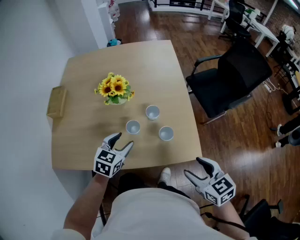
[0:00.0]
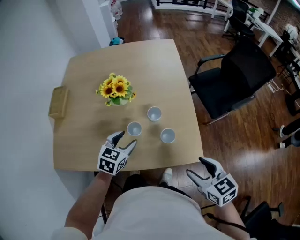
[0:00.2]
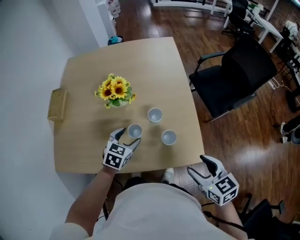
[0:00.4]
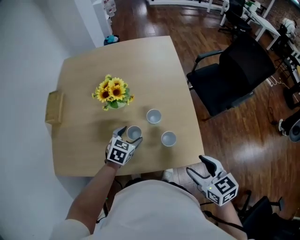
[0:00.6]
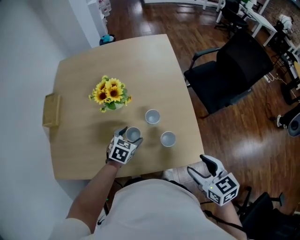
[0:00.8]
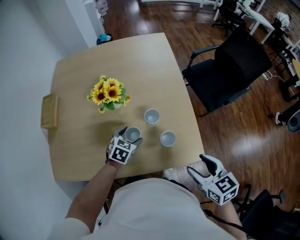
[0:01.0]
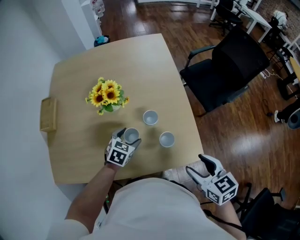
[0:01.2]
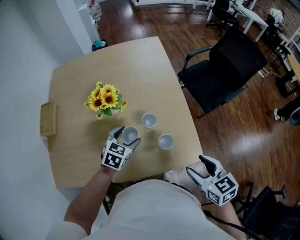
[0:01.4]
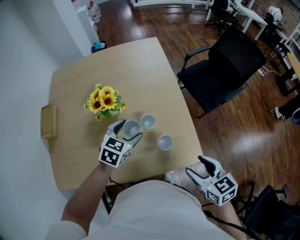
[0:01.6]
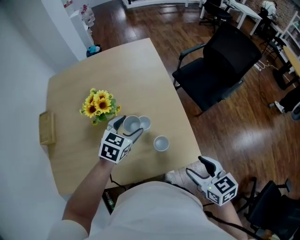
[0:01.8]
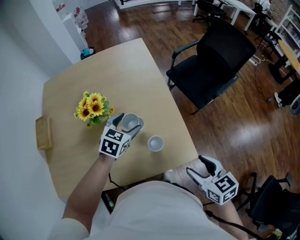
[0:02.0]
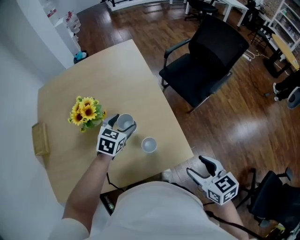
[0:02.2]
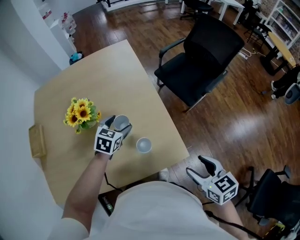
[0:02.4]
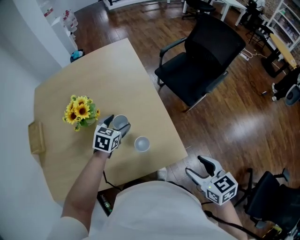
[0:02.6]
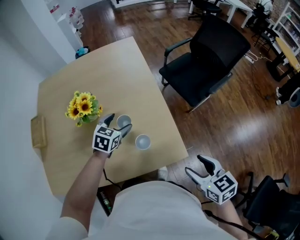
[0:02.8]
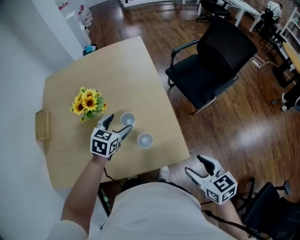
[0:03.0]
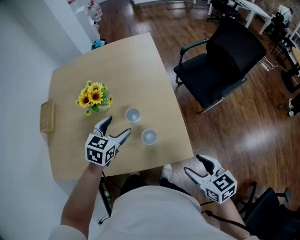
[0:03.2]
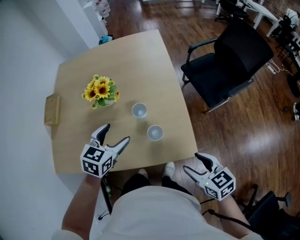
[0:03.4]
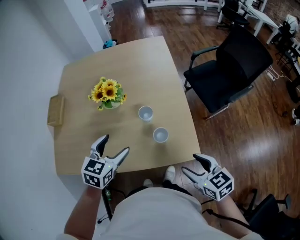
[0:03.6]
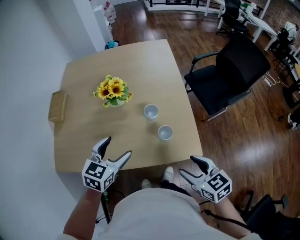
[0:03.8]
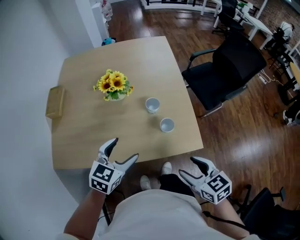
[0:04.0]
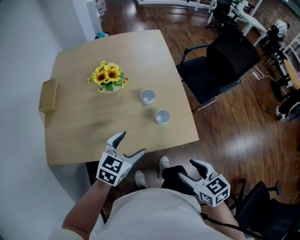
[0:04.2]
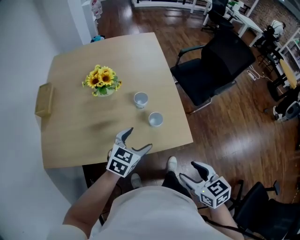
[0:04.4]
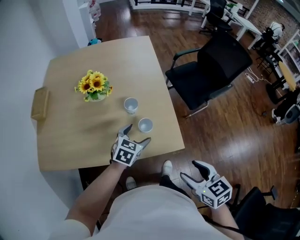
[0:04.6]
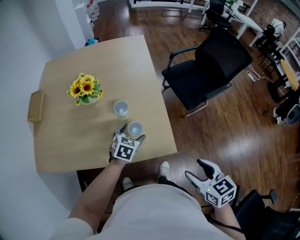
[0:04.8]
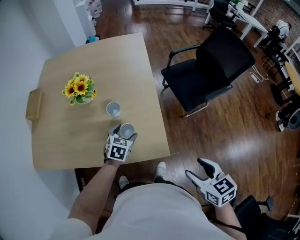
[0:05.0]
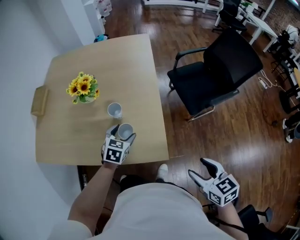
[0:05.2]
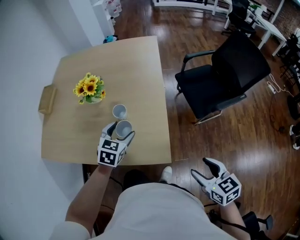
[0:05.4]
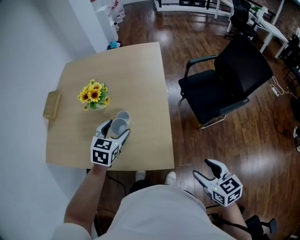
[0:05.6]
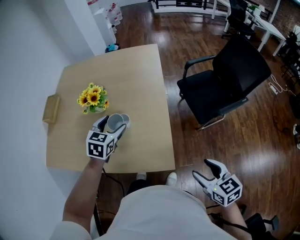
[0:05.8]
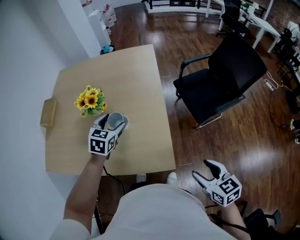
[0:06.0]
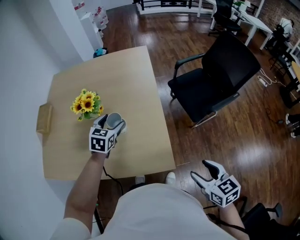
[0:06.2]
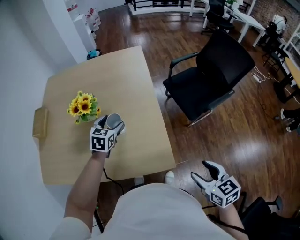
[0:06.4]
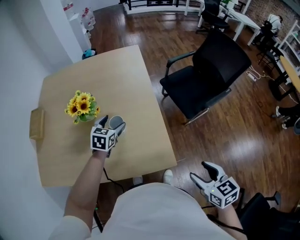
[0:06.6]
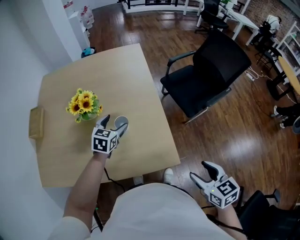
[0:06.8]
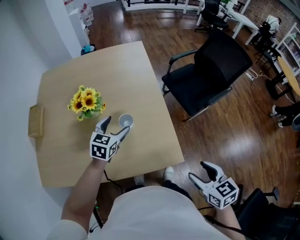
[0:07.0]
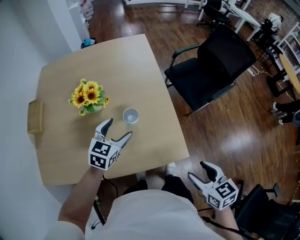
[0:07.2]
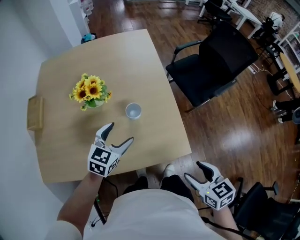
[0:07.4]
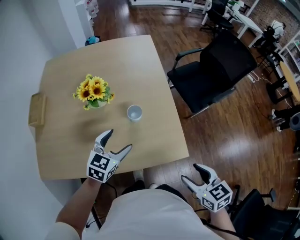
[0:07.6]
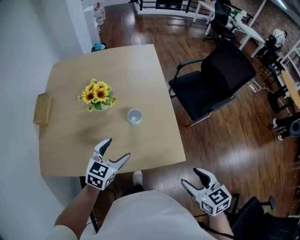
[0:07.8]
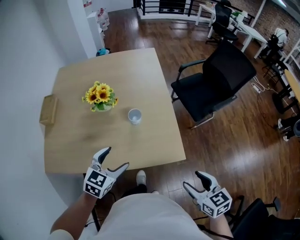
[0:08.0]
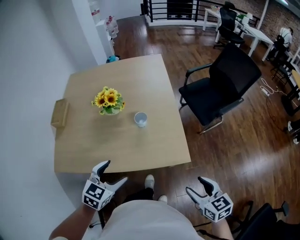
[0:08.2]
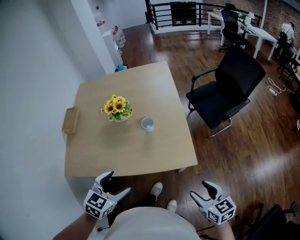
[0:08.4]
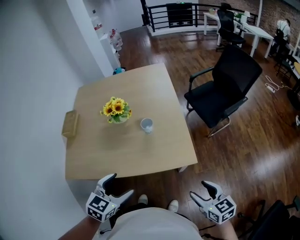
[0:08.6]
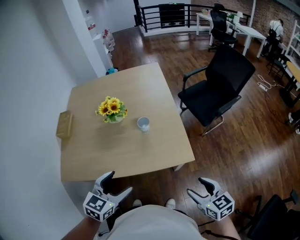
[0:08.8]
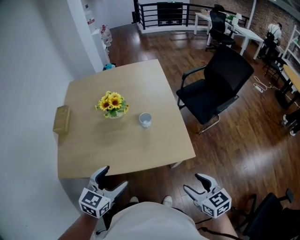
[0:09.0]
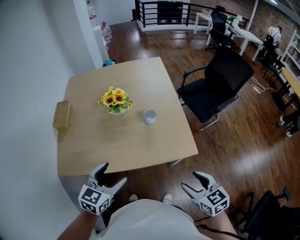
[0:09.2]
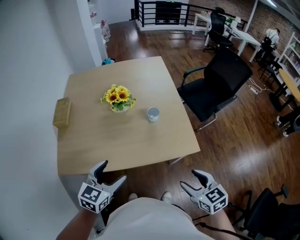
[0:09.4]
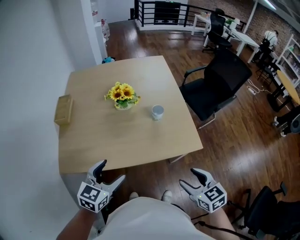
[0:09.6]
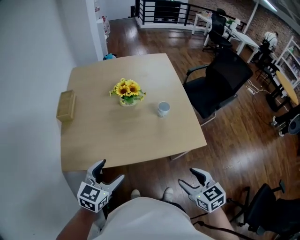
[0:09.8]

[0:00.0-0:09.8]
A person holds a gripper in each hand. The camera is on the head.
0:00.0 to 0:01.4: The left gripper goes approximately 10 cm forward, and goes downward and returns, approximately 10 cm each way. Meanwhile the right gripper moves forward, approximately 5 cm.
0:01.4 to 0:02.8: The left gripper shifts approximately 10 cm to the right and forward. Meanwhile the right gripper travels to the right by roughly 10 cm.
0:02.8 to 0:04.2: The right gripper goes about 15 cm to the left and backward. Meanwhile the left gripper is displaced backward by roughly 25 cm.
0:04.2 to 0:05.6: The right gripper travels to the right by some 25 cm; the left gripper heads forward and to the right, covering some 20 cm, and rotates some 30 degrees.
0:05.6 to 0:07.0: The right gripper moves to the left, some 10 cm; the left gripper goes approximately 5 cm forward.
0:07.0 to 0:08.4: The right gripper moves backward, roughly 10 cm; the left gripper is displaced backward by about 30 cm.
0:08.4 to 0:09.8: The two grippers go roughly 20 cm to the left.

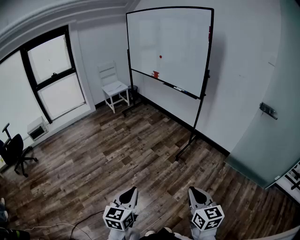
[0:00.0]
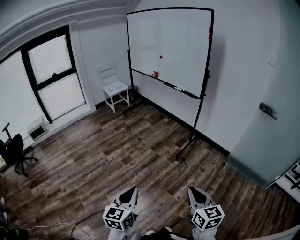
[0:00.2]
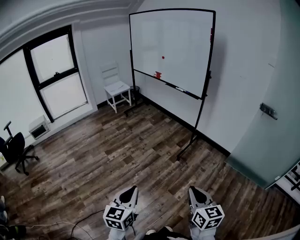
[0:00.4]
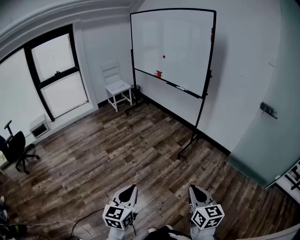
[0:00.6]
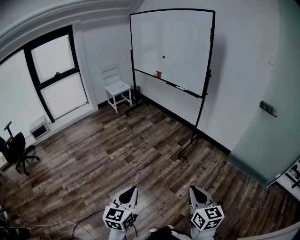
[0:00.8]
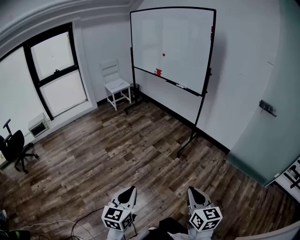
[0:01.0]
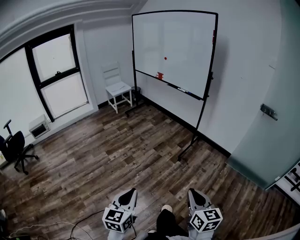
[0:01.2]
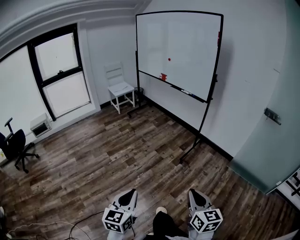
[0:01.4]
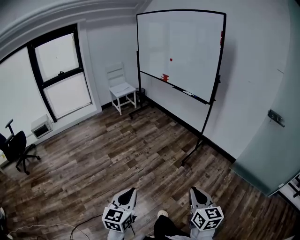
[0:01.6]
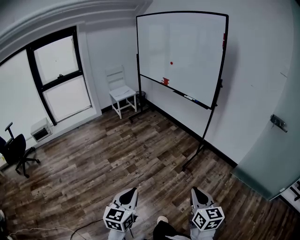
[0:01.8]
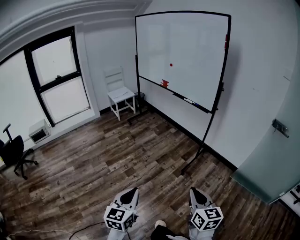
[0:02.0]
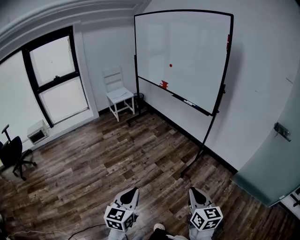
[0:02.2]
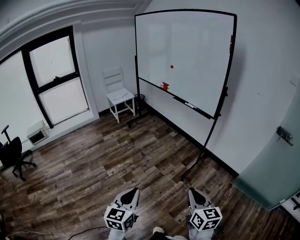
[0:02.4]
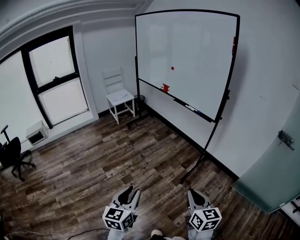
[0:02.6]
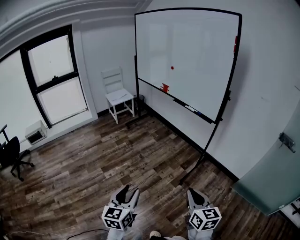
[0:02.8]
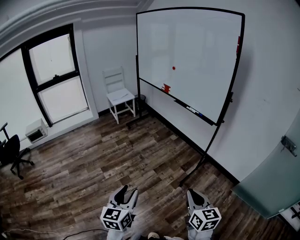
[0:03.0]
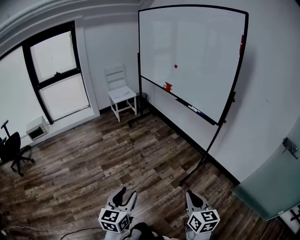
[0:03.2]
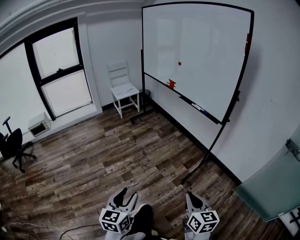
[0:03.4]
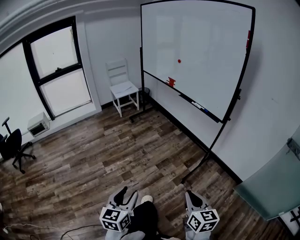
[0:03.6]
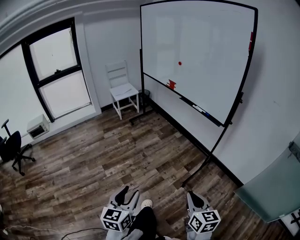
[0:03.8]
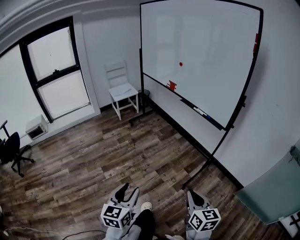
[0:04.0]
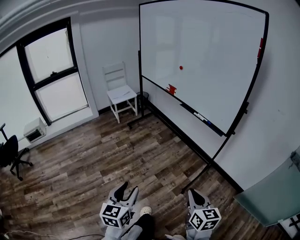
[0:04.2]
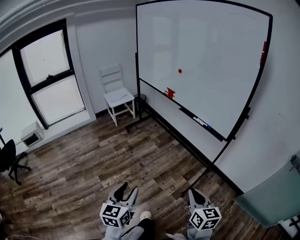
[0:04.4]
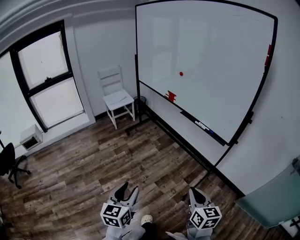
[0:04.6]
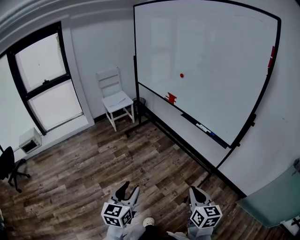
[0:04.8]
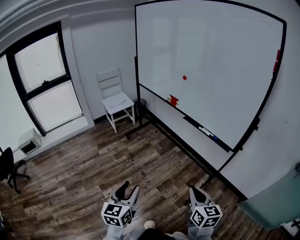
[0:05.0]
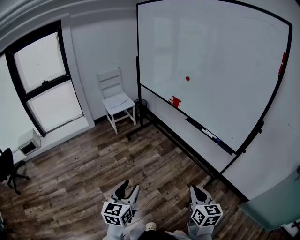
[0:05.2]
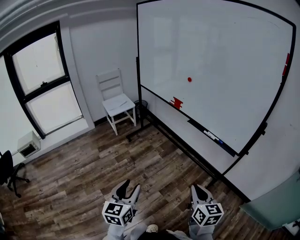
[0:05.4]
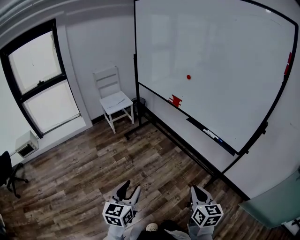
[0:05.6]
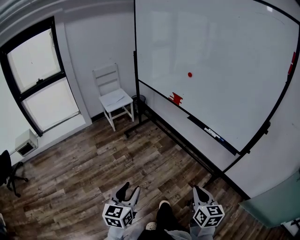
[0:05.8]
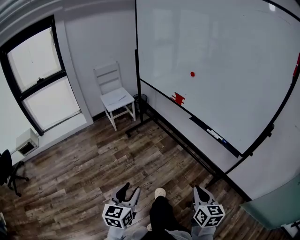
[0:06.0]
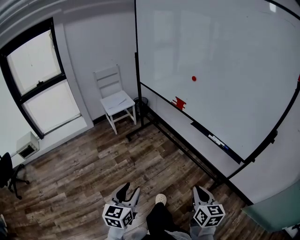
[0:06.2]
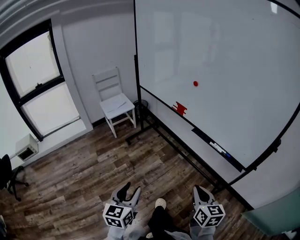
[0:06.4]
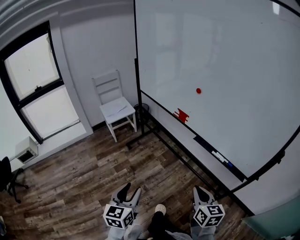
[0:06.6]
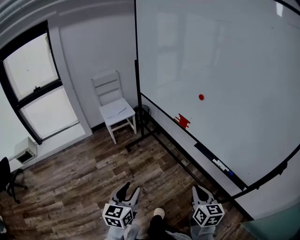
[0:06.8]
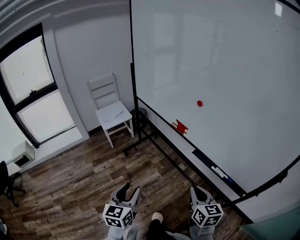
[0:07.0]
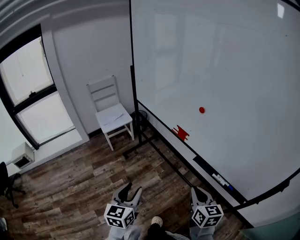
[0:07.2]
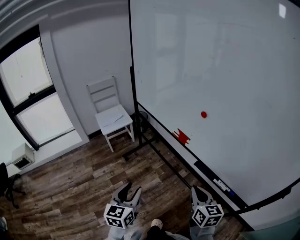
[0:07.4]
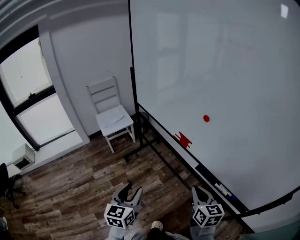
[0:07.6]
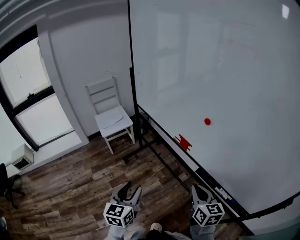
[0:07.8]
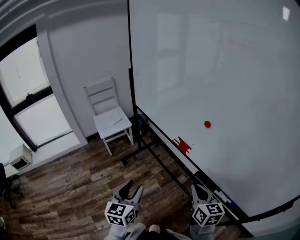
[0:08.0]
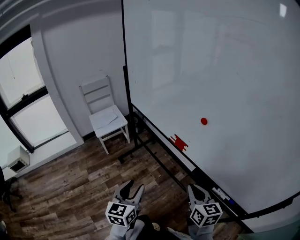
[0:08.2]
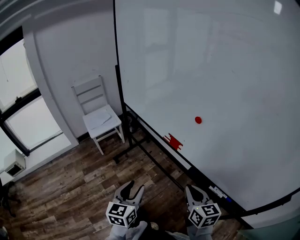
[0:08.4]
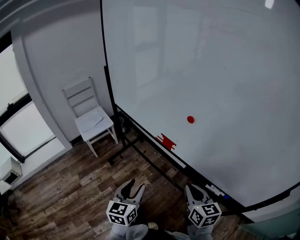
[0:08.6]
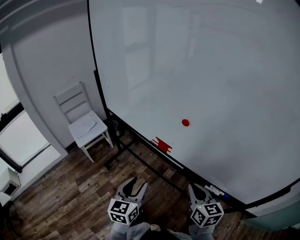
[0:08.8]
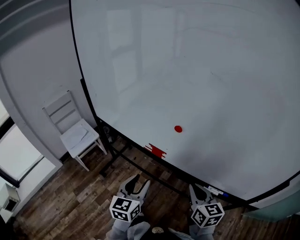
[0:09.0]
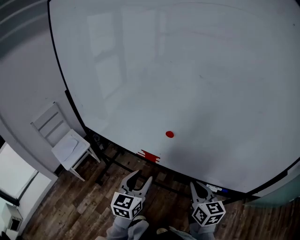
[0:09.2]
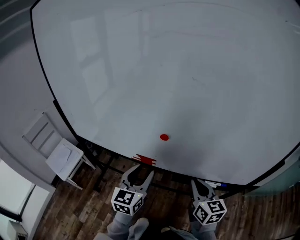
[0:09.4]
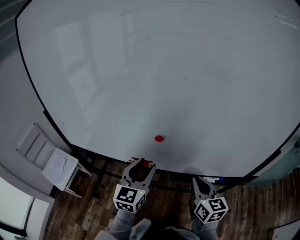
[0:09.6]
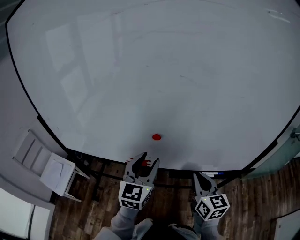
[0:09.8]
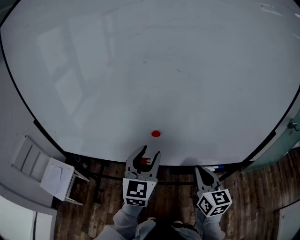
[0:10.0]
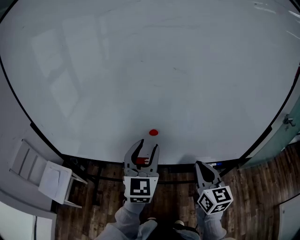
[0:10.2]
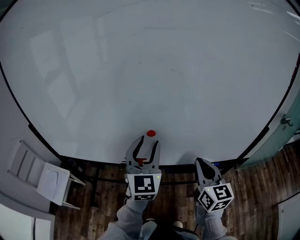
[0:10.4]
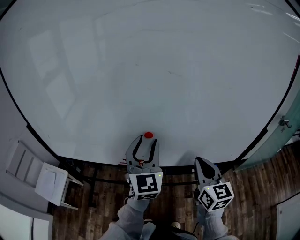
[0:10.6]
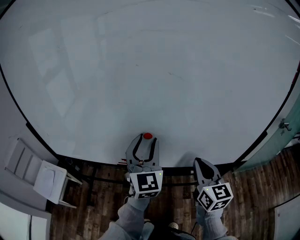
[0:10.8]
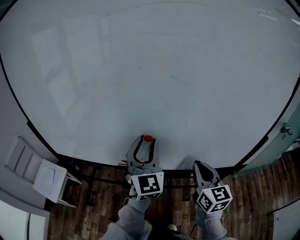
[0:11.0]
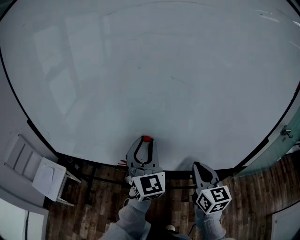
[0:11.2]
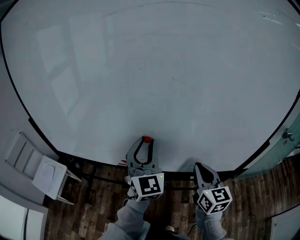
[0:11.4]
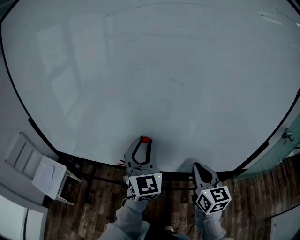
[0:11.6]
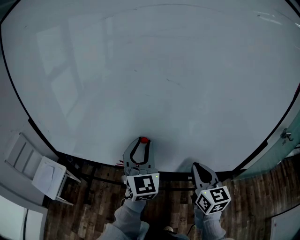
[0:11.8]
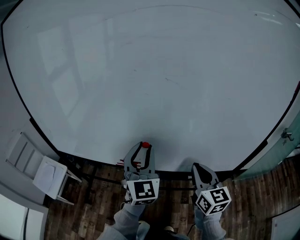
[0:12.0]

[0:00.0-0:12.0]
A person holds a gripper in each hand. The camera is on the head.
0:00.0 to 0:01.6: The right gripper shifts by roughly 5 cm. Meanwhile the left gripper is displaced to the left by some 5 cm.
0:01.6 to 0:03.0: Both grippers travel together forward, roughly 25 cm. The left gripper opens its fingers.
0:03.0 to 0:04.4: Both grippers travel together forward, approximately 20 cm.
0:04.4 to 0:06.0: Both grippers travel together forward, roughly 20 cm.
0:06.0 to 0:07.6: The two grippers go roughly 35 cm forward.
0:07.6 to 0:09.0: The right gripper shifts roughly 10 cm forward and to the right; the left gripper heads forward and to the right, covering approximately 20 cm, and rotates about 20 degrees.
0:09.0 to 0:10.4: The right gripper is displaced upward by about 10 cm, and rotates approximately 40 degrees, while the left gripper moves upward, some 15 cm, and rotates roughly 30 degrees.
0:10.4 to 0:12.0: There are only small adjustments of the grippers.

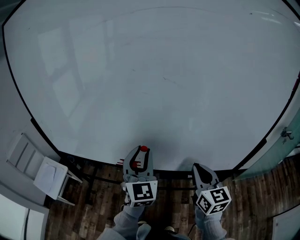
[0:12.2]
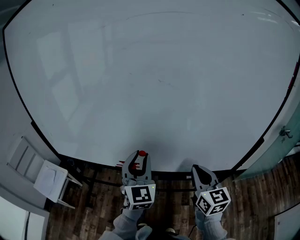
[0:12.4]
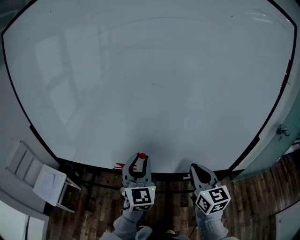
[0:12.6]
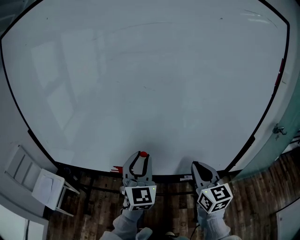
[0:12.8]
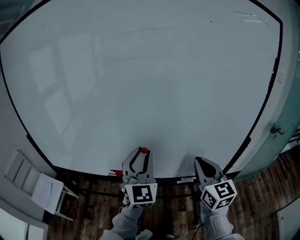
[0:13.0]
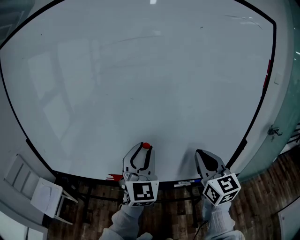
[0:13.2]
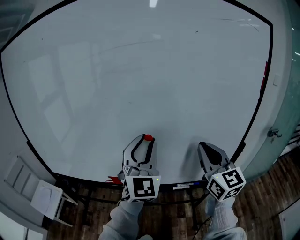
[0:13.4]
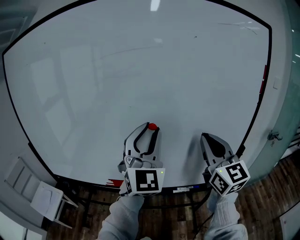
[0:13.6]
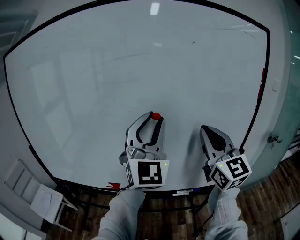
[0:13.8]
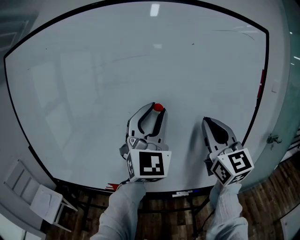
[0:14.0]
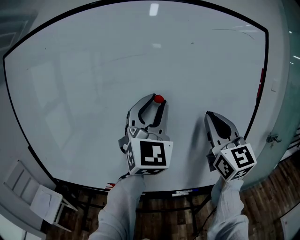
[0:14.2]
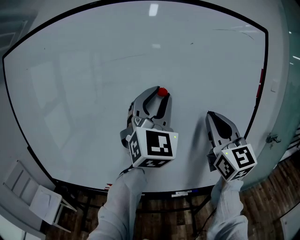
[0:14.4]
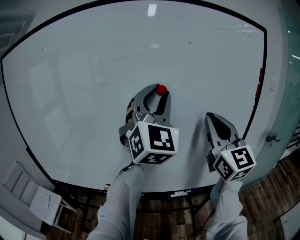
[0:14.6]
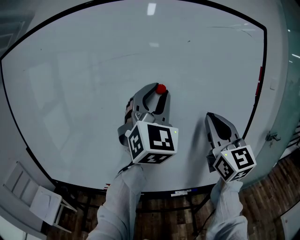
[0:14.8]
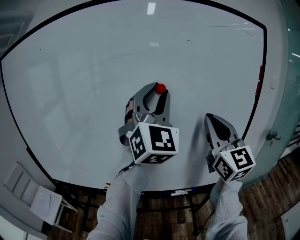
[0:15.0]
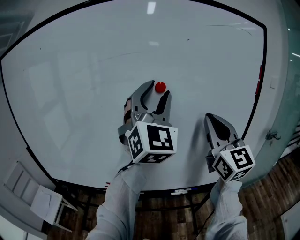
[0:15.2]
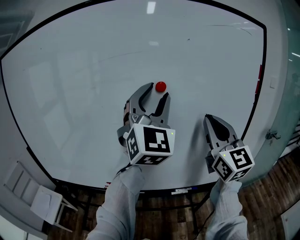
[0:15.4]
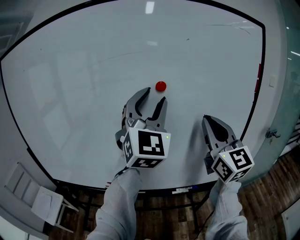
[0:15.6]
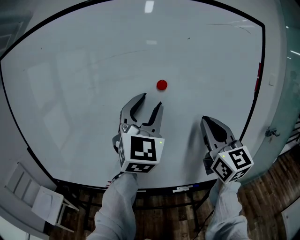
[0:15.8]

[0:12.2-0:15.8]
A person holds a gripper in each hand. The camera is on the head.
0:12.2 to 0:14.0: The left gripper travels upward and to the right by roughly 30 cm, and rotates approximately 30 degrees. The right gripper goes roughly 30 cm upward, and rotates approximately 30 degrees.
0:14.0 to 0:15.8: The grippers move only a little.
